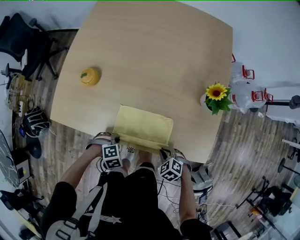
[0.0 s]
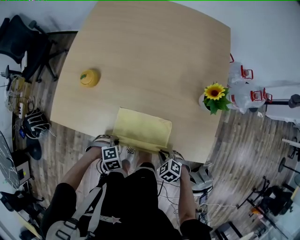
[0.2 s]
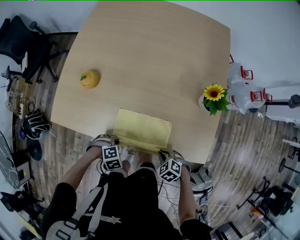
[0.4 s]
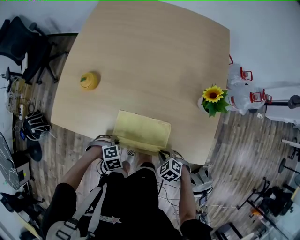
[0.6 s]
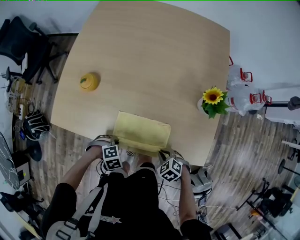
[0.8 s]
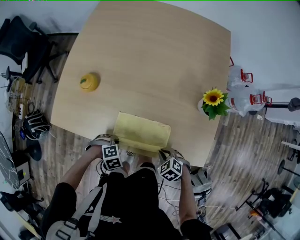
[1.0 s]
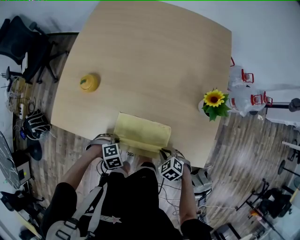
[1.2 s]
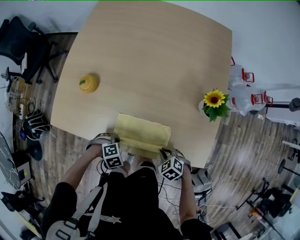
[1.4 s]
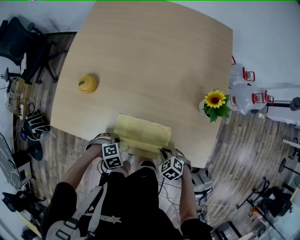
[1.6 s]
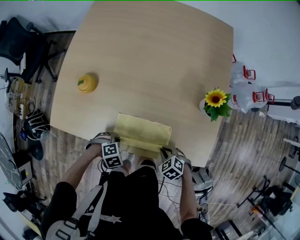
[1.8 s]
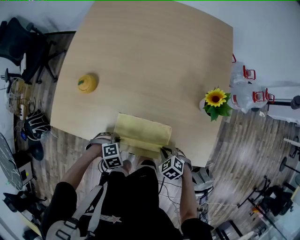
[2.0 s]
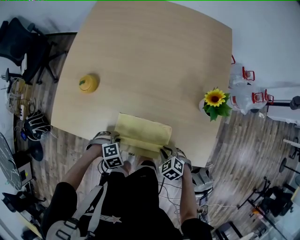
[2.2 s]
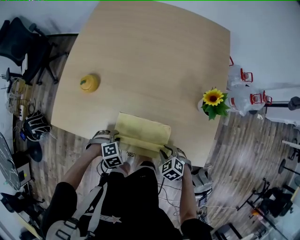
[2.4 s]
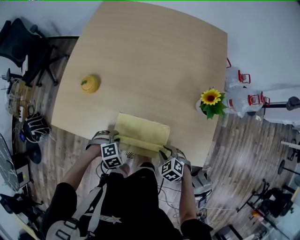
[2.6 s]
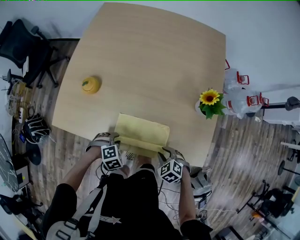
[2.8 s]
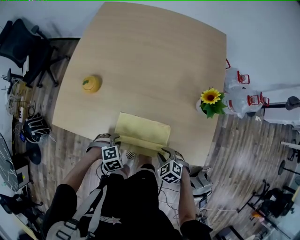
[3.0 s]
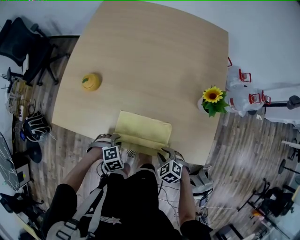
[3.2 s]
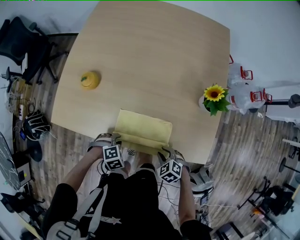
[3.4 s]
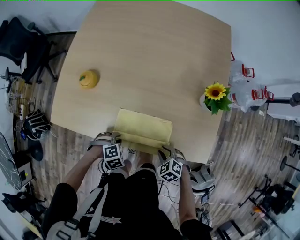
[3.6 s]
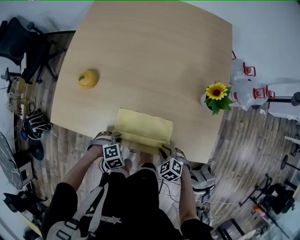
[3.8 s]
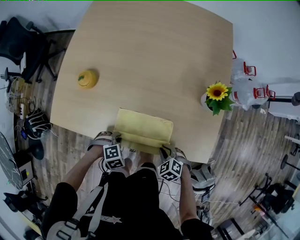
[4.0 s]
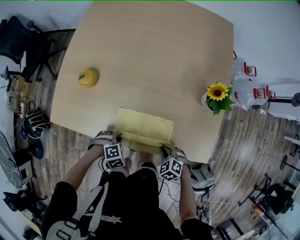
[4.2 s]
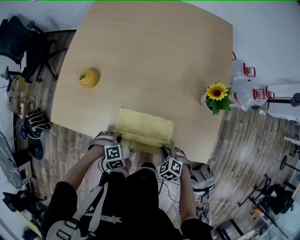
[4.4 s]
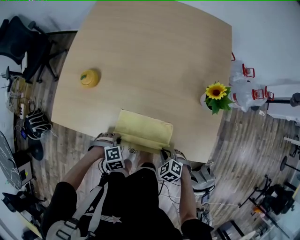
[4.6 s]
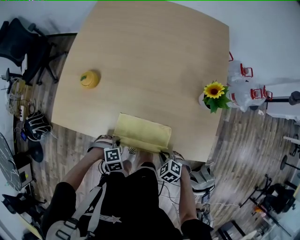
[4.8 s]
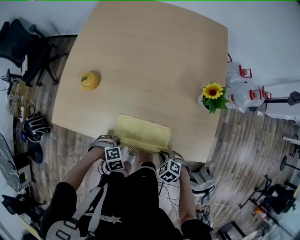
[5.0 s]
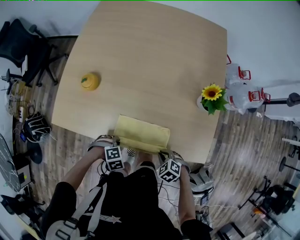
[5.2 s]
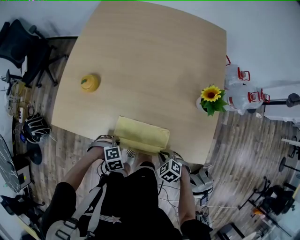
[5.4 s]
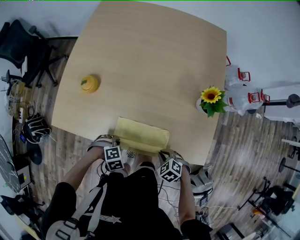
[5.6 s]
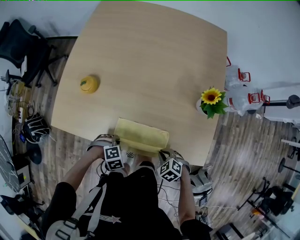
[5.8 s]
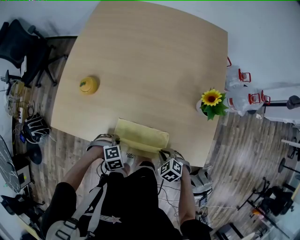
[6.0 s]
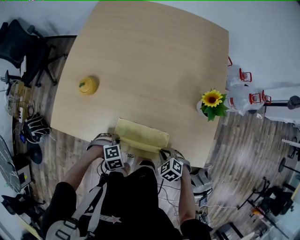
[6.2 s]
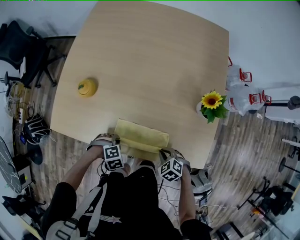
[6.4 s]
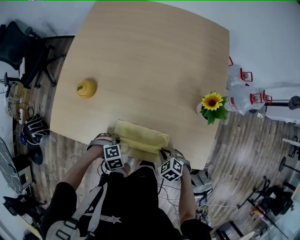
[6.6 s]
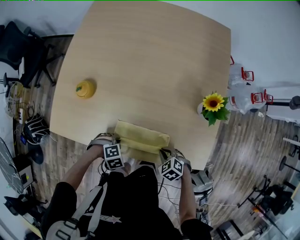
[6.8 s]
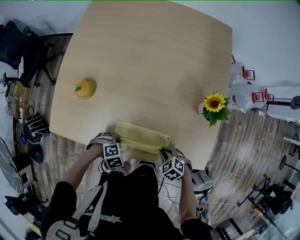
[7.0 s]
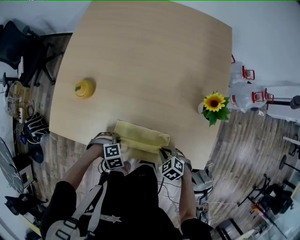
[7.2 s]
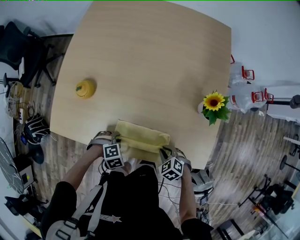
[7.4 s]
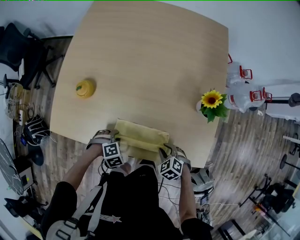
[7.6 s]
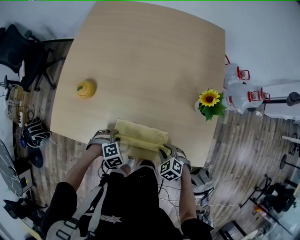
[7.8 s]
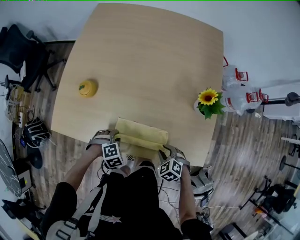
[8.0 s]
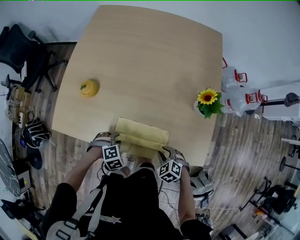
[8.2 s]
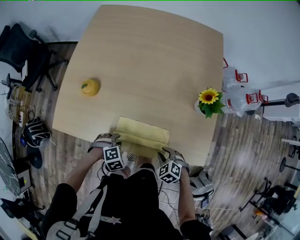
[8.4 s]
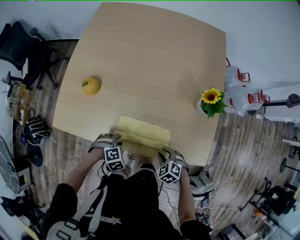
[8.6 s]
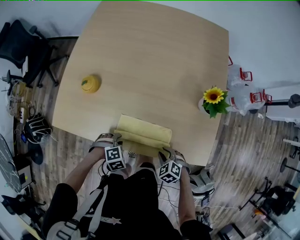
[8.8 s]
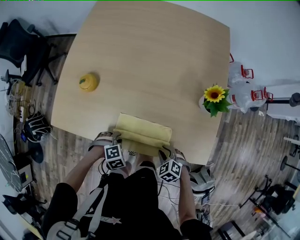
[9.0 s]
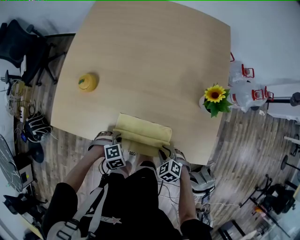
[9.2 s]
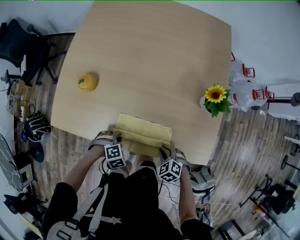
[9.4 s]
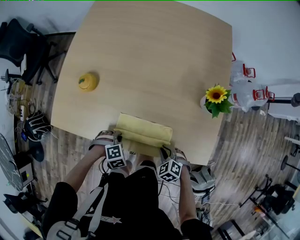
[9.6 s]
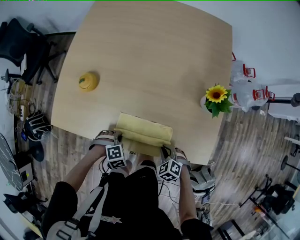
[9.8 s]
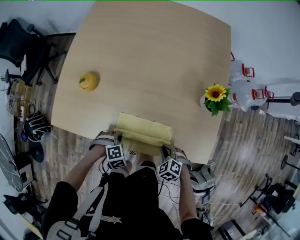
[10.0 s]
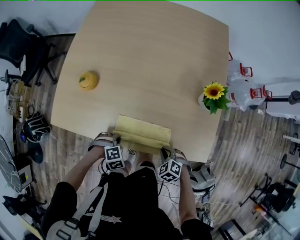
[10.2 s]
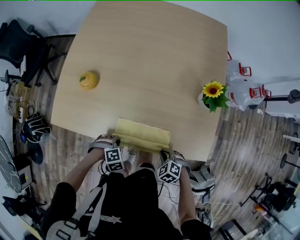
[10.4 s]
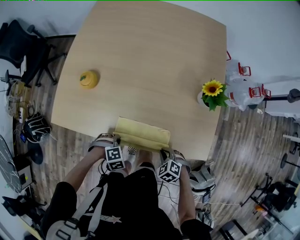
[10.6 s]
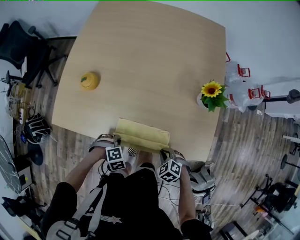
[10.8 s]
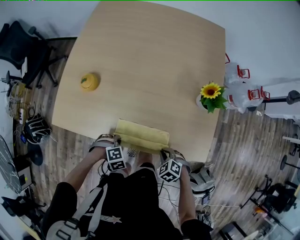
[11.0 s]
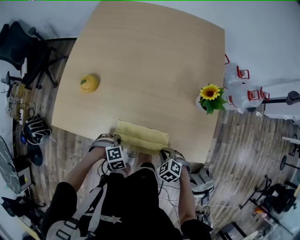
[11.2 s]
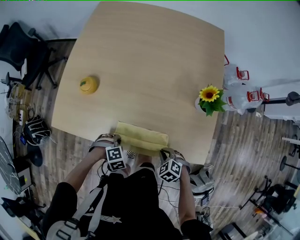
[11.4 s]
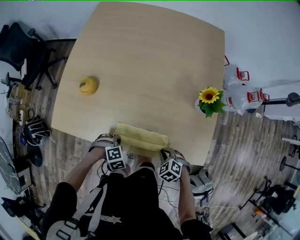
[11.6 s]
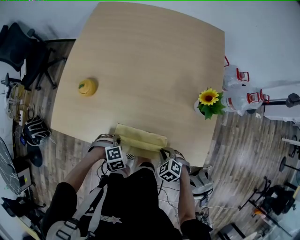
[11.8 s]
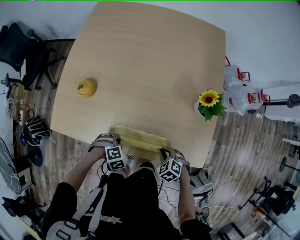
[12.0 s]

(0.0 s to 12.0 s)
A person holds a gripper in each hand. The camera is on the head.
3.0 s - 4.4 s: The right gripper closes.
6.0 s - 7.6 s: The right gripper opens up.
10.4 s - 12.0 s: The right gripper ends up approximately 5 cm from where it was.

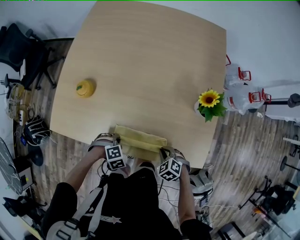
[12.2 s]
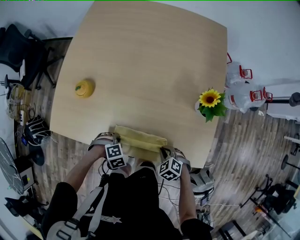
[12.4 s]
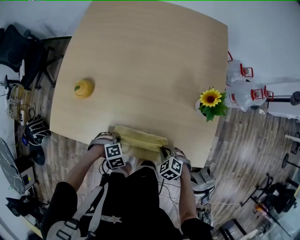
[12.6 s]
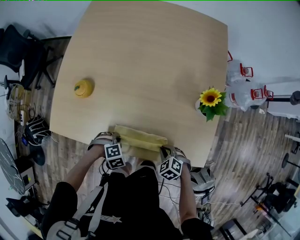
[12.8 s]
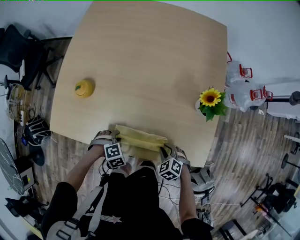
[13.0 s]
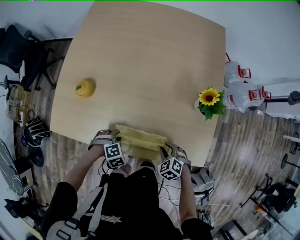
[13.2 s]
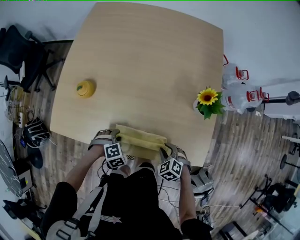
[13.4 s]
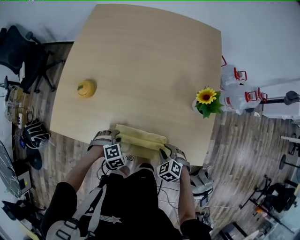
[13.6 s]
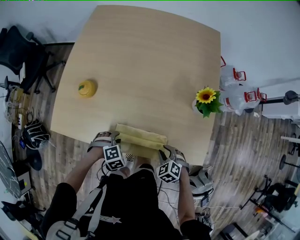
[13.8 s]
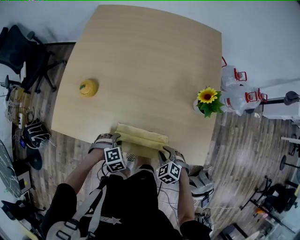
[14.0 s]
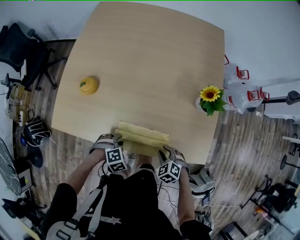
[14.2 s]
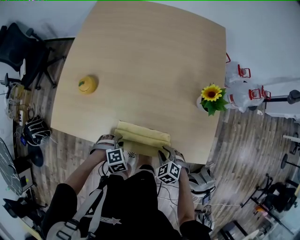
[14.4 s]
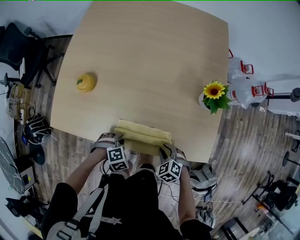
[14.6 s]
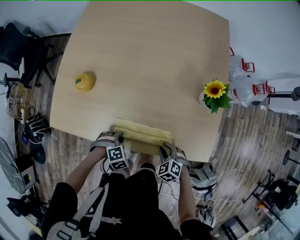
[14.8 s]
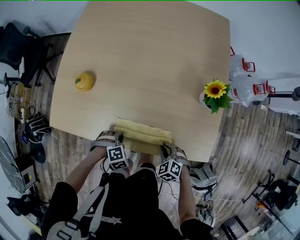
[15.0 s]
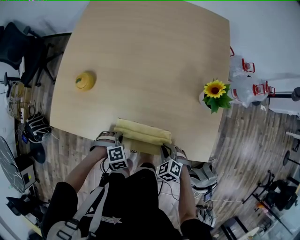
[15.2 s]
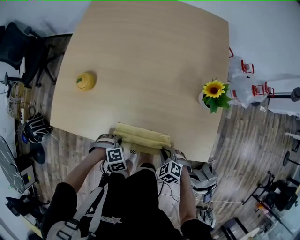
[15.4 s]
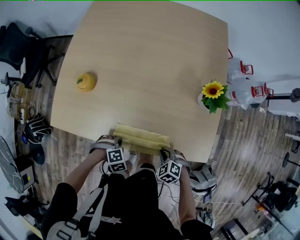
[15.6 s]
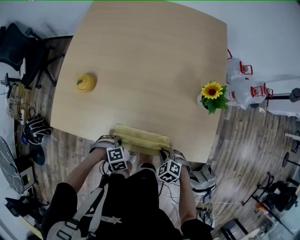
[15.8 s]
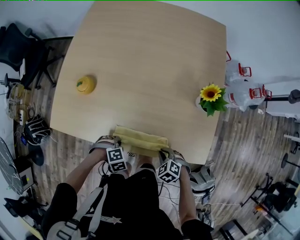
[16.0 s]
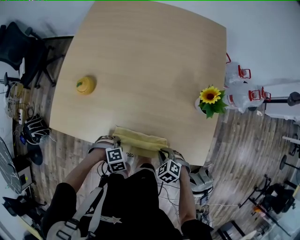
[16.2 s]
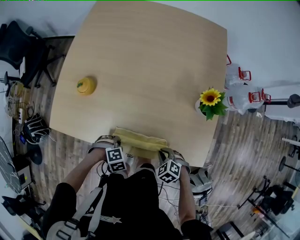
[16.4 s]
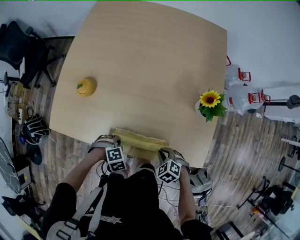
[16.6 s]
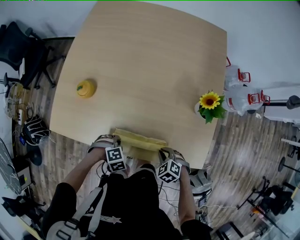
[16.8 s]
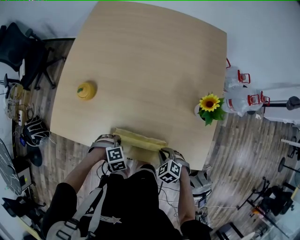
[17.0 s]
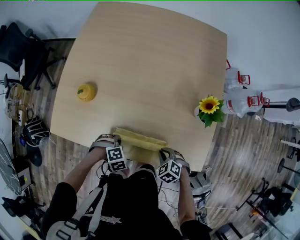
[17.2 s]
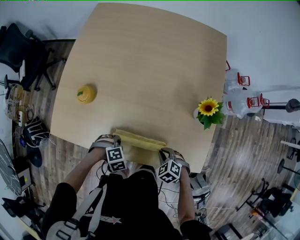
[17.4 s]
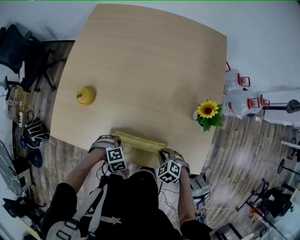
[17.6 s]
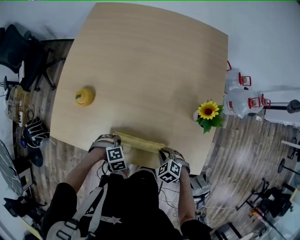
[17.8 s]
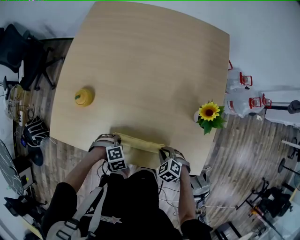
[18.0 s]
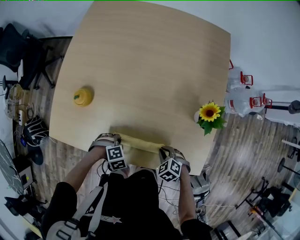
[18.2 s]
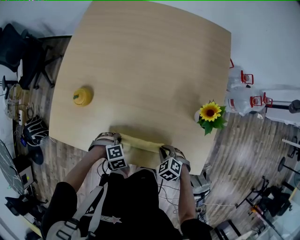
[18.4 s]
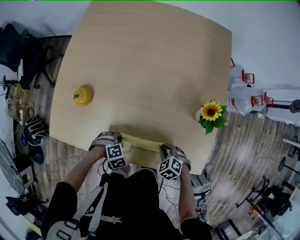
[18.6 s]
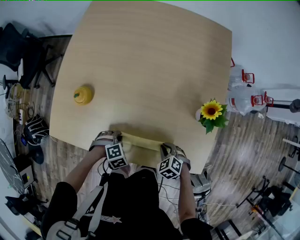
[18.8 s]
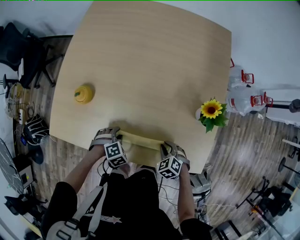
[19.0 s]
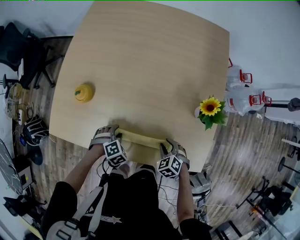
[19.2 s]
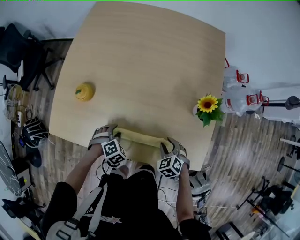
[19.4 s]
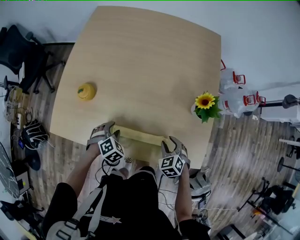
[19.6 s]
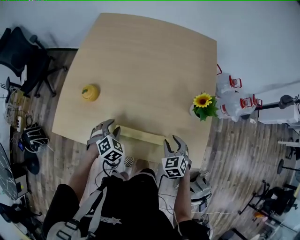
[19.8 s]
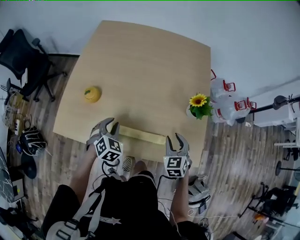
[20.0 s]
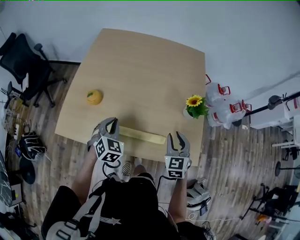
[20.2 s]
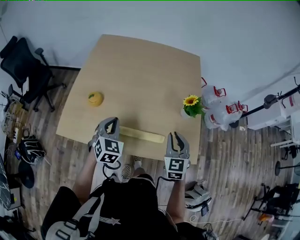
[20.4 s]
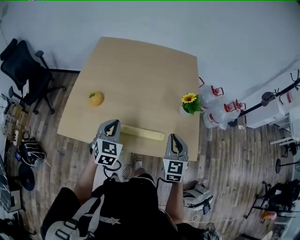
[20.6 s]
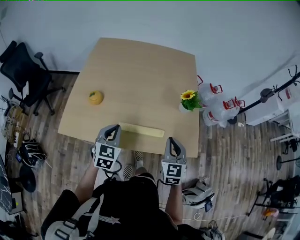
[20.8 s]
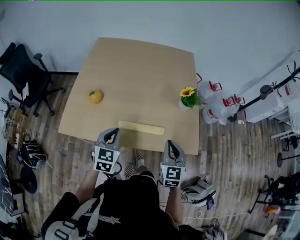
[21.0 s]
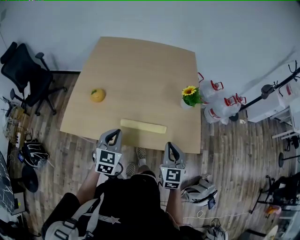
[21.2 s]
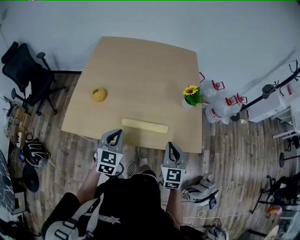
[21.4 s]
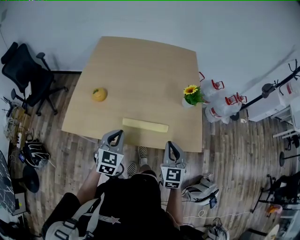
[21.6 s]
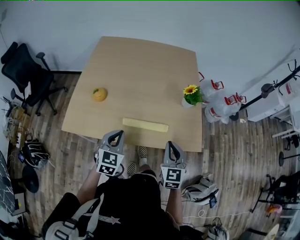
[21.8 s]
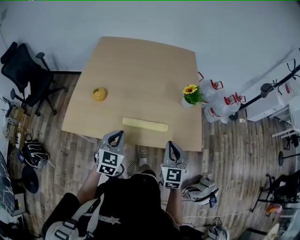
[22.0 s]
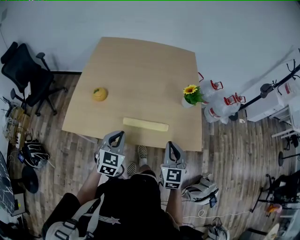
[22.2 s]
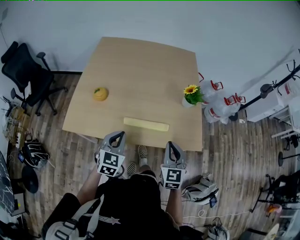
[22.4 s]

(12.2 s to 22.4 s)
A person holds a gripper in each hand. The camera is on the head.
12.2 s - 13.6 s: The right gripper opens.
16.6 s - 18.0 s: The right gripper moves about 5 cm.
18.0 s - 19.4 s: The right gripper opens.
19.4 s - 21.0 s: The right gripper is displaced upward by roughly 25 cm, angles its fingers upward, by about 40 degrees, and closes up.

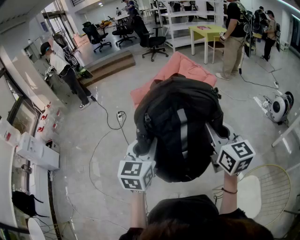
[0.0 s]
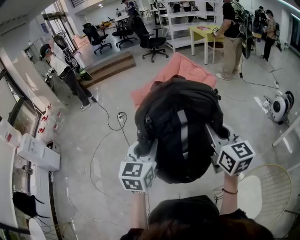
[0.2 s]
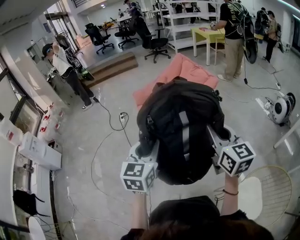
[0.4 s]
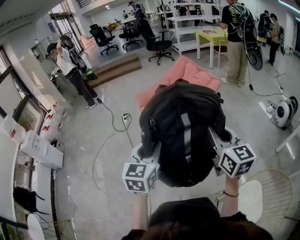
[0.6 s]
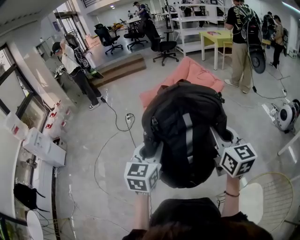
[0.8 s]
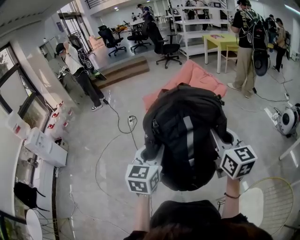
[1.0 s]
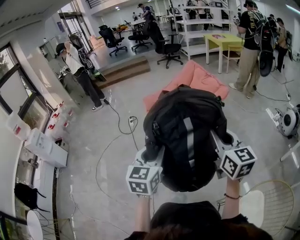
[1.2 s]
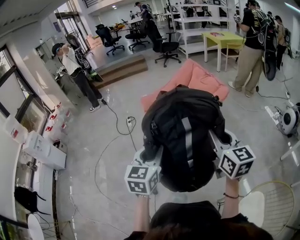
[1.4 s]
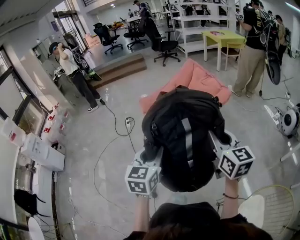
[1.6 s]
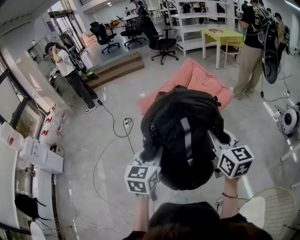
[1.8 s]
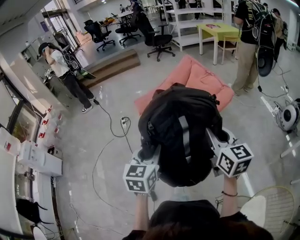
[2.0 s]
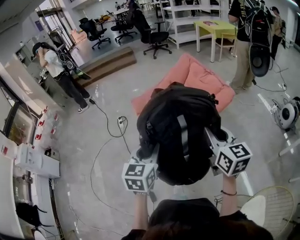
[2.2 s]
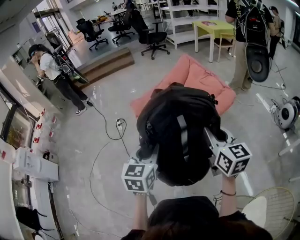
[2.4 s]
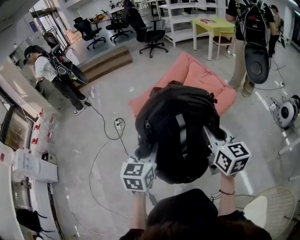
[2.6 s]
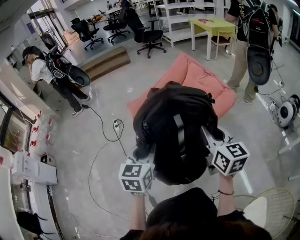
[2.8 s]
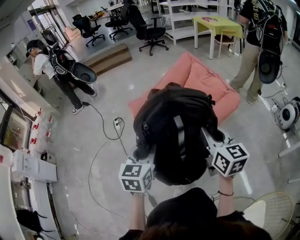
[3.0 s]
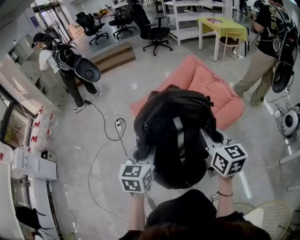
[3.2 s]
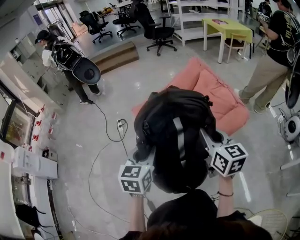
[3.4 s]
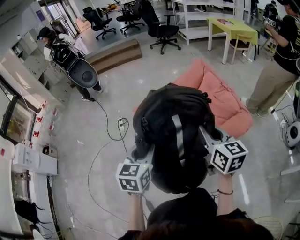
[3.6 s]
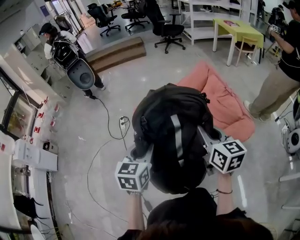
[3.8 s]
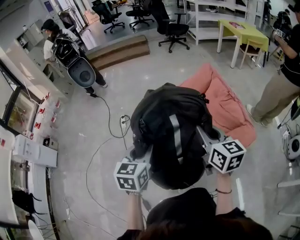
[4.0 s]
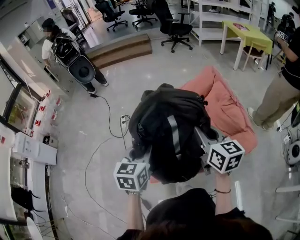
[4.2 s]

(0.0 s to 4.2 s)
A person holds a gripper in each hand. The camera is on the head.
0.0 s - 1.4 s: The two grippers go roughly 5 cm forward.
1.4 s - 2.8 s: The grippers both shift forward by about 25 cm.
2.8 s - 4.2 s: Both grippers move forward, roughly 25 cm.
